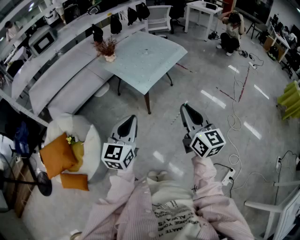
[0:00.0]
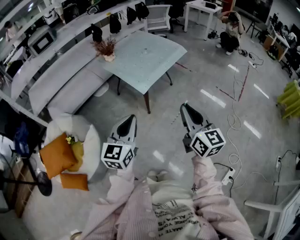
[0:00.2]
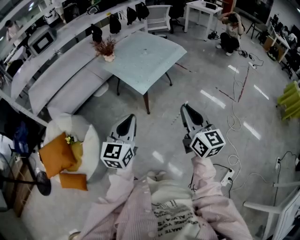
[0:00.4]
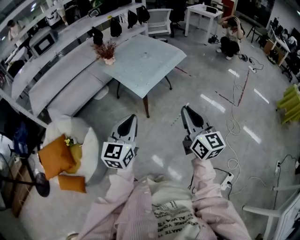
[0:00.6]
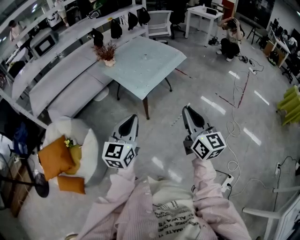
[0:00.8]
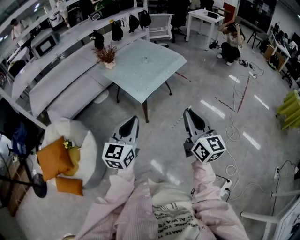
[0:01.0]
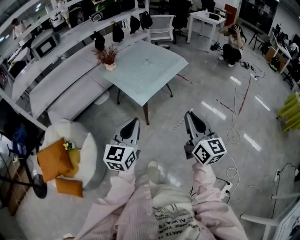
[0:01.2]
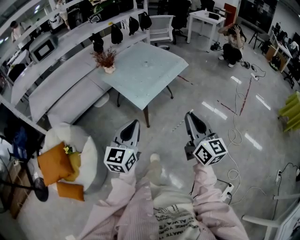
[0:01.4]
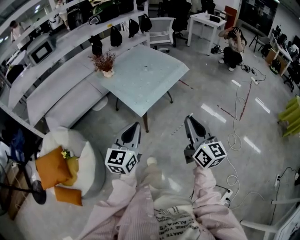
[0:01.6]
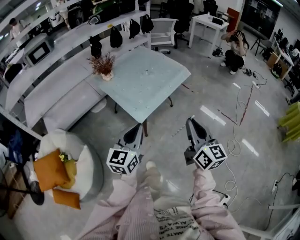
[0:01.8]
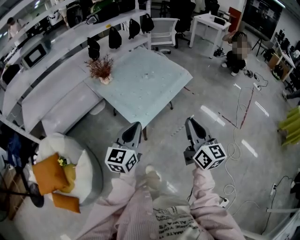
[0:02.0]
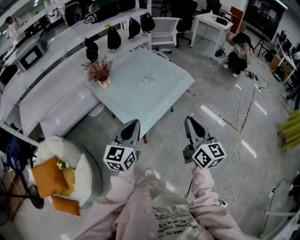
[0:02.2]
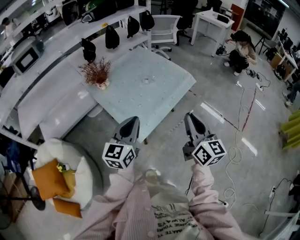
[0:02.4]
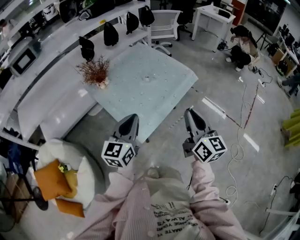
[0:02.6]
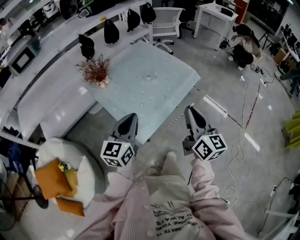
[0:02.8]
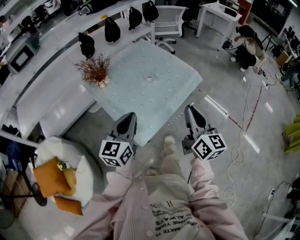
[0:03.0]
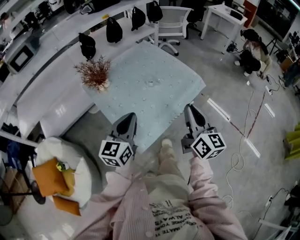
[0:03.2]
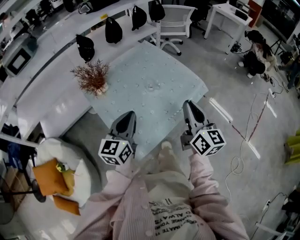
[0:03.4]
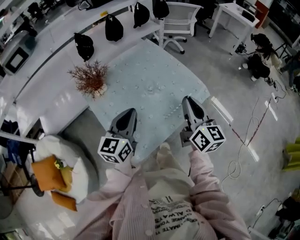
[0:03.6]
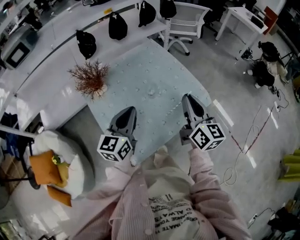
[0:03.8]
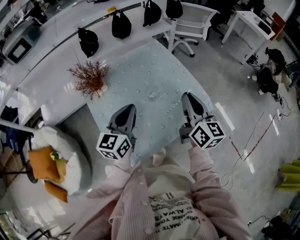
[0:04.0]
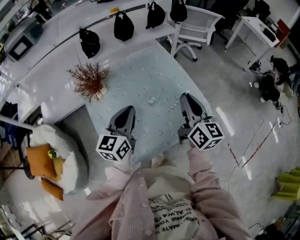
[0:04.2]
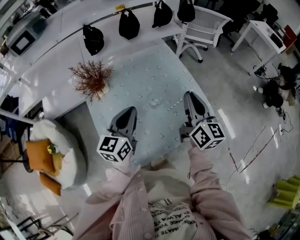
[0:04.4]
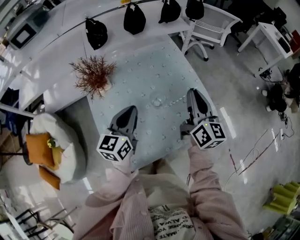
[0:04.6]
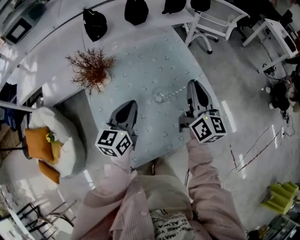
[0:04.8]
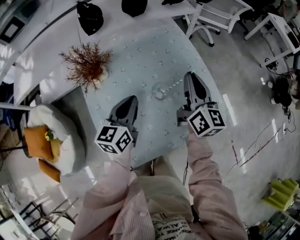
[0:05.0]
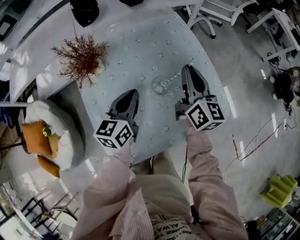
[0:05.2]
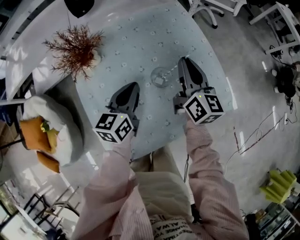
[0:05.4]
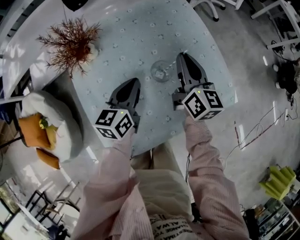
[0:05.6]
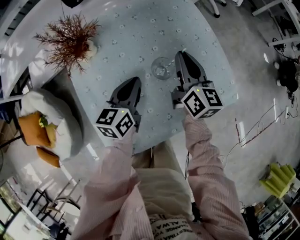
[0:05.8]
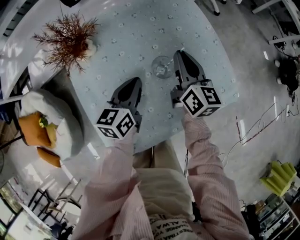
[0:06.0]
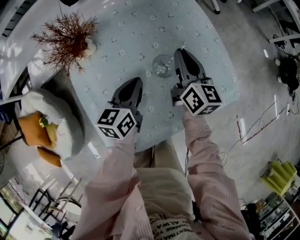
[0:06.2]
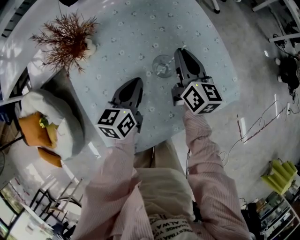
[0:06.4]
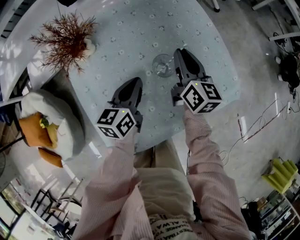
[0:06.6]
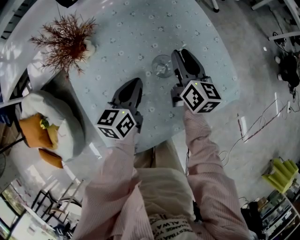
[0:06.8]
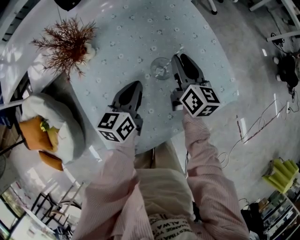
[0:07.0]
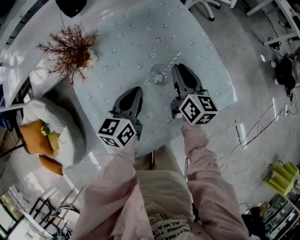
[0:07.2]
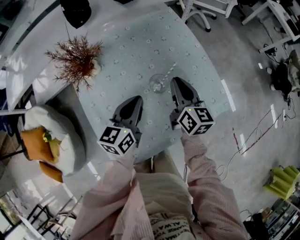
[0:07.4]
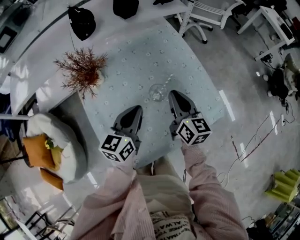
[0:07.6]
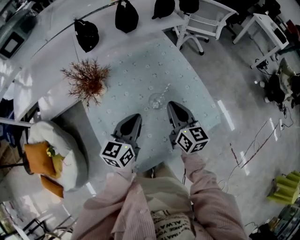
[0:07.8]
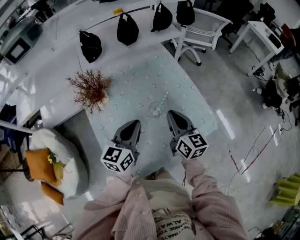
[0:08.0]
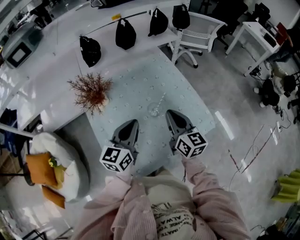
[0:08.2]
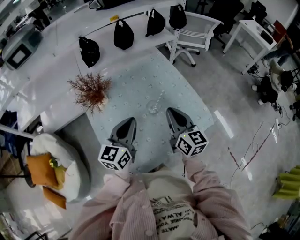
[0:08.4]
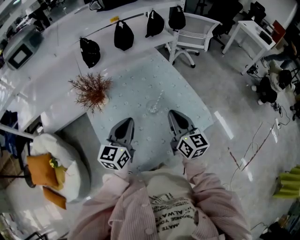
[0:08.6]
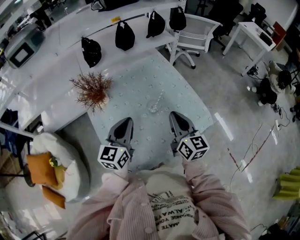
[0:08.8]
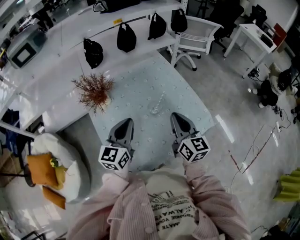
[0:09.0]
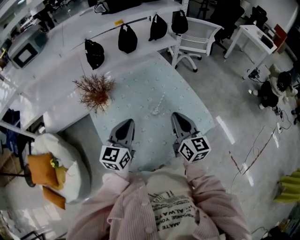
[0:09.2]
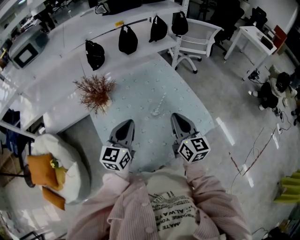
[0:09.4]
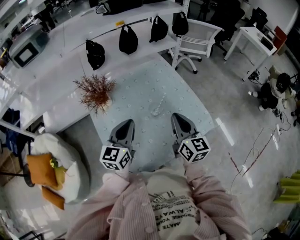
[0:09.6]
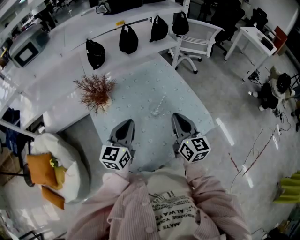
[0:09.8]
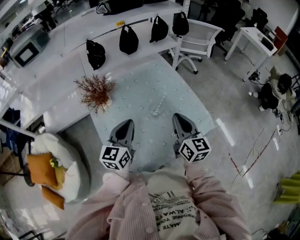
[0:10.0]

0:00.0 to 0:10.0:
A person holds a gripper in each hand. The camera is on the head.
0:00.0 to 0:01.4: Both grippers travel together forward, about 5 cm.
0:01.4 to 0:02.8: The two grippers go about 35 cm forward.
0:02.8 to 0:04.2: The grippers both shift forward by some 30 cm.
0:04.2 to 0:05.8: The right gripper shifts roughly 25 cm downward, forward and to the left. The left gripper shifts roughly 20 cm downward and forward, and swivels some 20 degrees.
0:05.8 to 0:07.2: The grippers move only a little.
0:07.2 to 0:08.6: The grippers both shift upward and backward by some 20 cm. The left gripper changes its angle by some 20 degrees.
0:08.6 to 0:10.0: There are only small adjustments of the grippers.

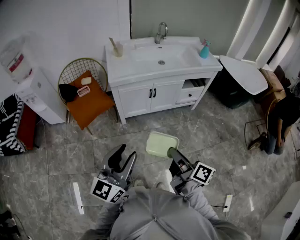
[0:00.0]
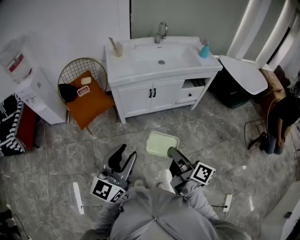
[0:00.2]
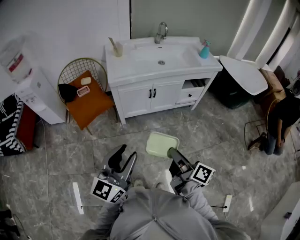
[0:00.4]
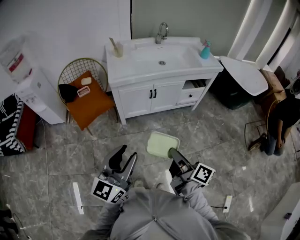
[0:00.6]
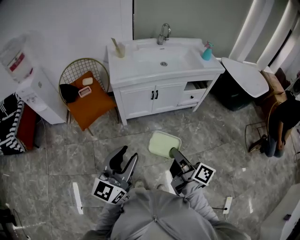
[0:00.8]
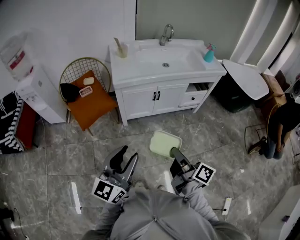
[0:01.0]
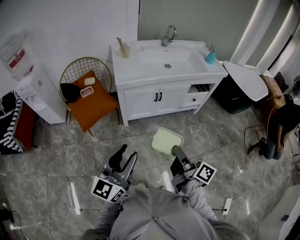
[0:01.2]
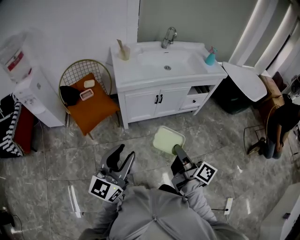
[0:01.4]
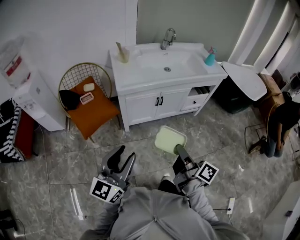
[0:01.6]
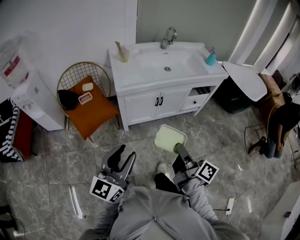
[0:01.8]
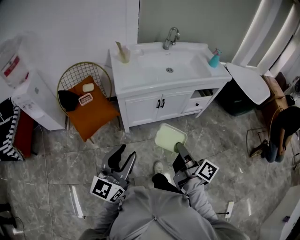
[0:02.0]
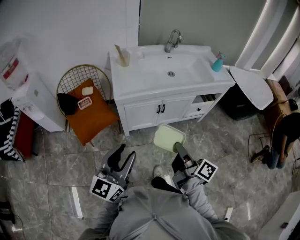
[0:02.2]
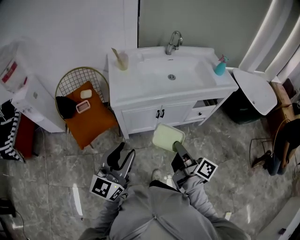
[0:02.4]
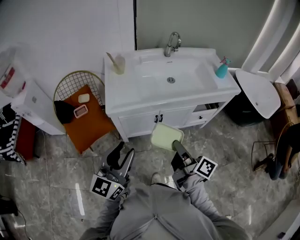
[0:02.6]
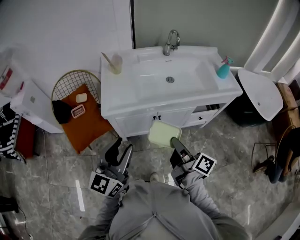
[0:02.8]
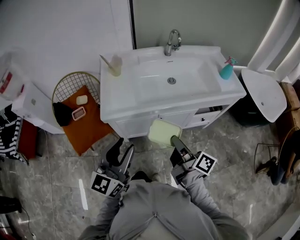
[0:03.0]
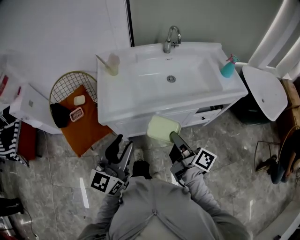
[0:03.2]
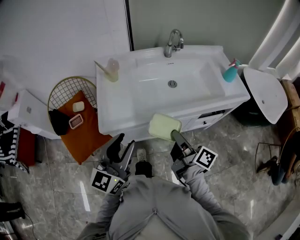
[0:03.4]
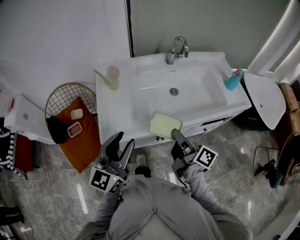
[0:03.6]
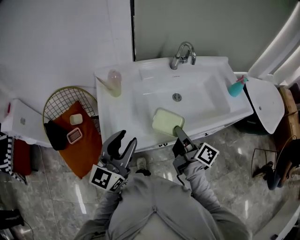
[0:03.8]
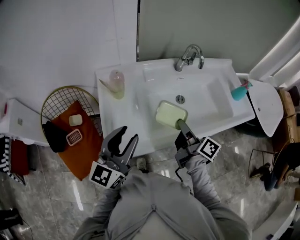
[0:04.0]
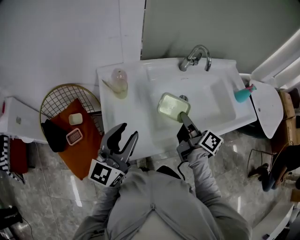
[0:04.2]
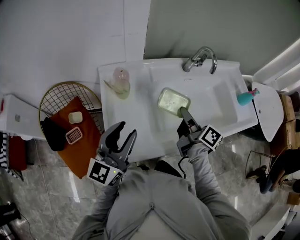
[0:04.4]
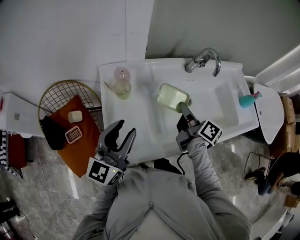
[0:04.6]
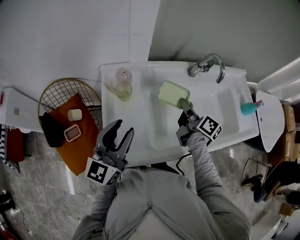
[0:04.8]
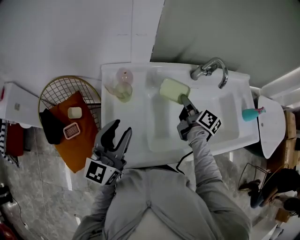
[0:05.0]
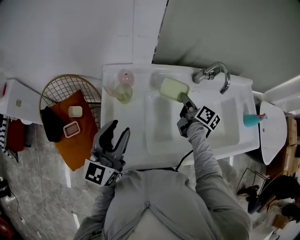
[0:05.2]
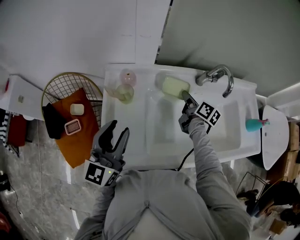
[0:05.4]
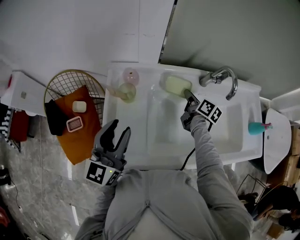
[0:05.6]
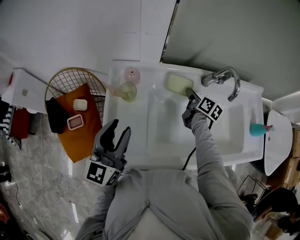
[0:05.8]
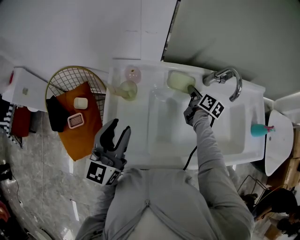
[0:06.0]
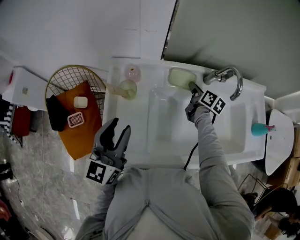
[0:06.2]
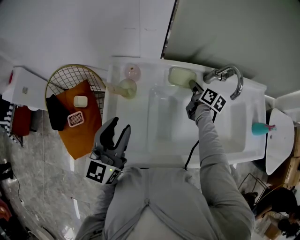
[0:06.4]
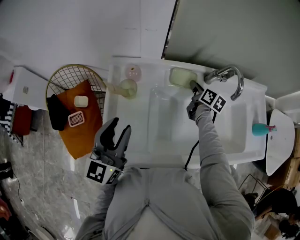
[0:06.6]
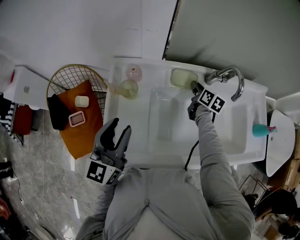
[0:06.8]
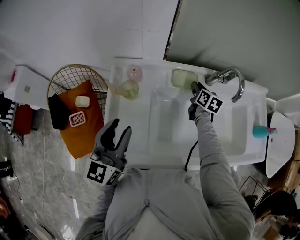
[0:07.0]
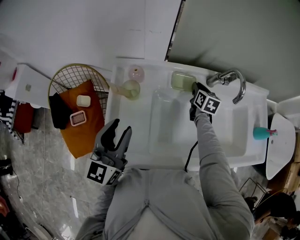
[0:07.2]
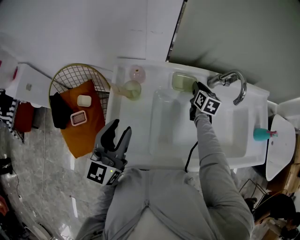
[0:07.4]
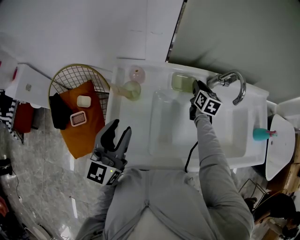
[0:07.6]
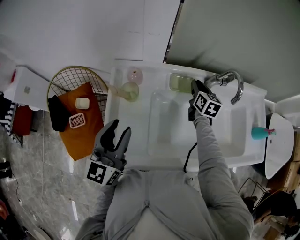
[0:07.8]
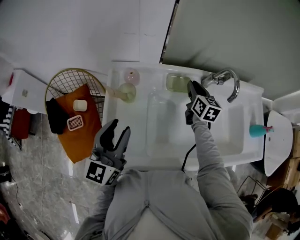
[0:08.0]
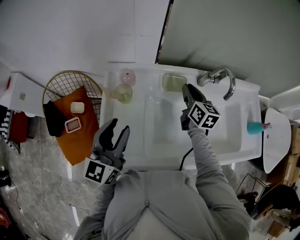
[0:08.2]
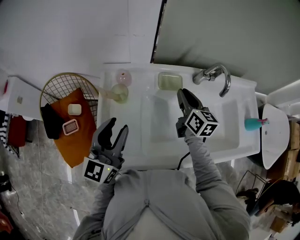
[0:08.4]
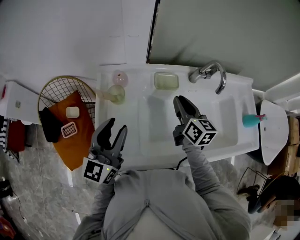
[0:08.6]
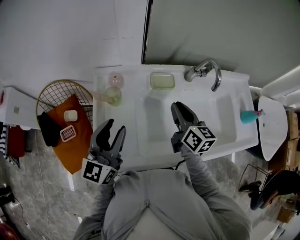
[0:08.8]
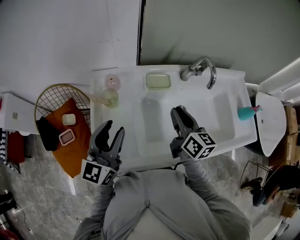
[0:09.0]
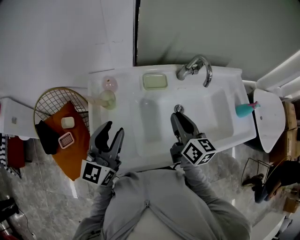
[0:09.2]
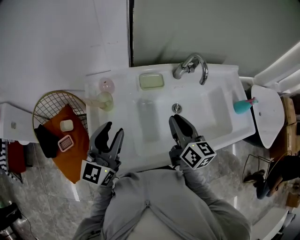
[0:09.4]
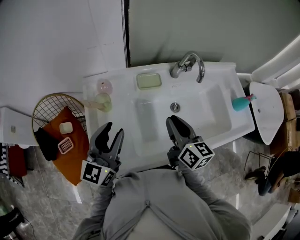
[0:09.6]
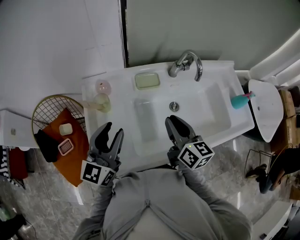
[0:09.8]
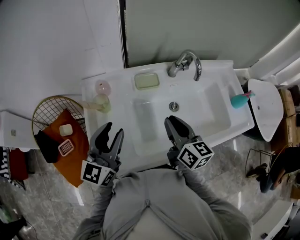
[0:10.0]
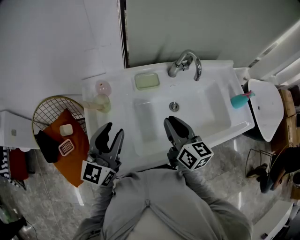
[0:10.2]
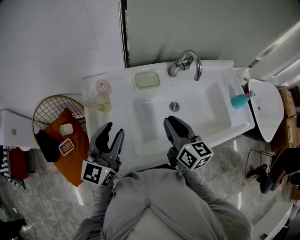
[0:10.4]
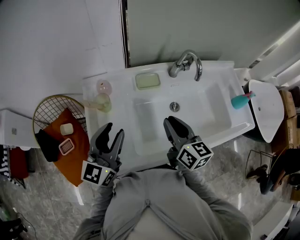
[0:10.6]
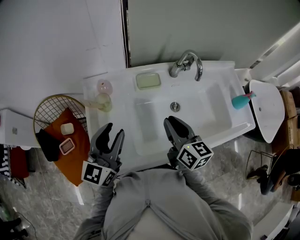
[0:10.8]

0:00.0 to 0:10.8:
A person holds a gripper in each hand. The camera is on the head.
0:00.0 to 0:01.6: The left gripper heads to the left and forward, covering about 10 cm. Meanwhile the right gripper goes some 5 cm forward.
0:01.6 to 0:03.0: The two grippers go some 30 cm forward.
0:03.0 to 0:04.6: The two grippers go approximately 35 cm forward.
0:04.6 to 0:06.2: The right gripper travels forward and downward by approximately 25 cm, and swivels roughly 20 degrees.
0:06.2 to 0:07.8: The right gripper turns by some 30 degrees.
0:07.8 to 0:09.2: The right gripper shifts about 25 cm backward and upward.
0:09.2 to 0:10.8: The grippers move only a little.

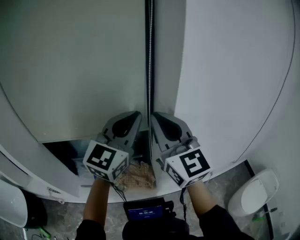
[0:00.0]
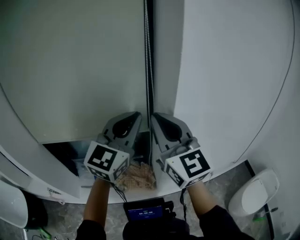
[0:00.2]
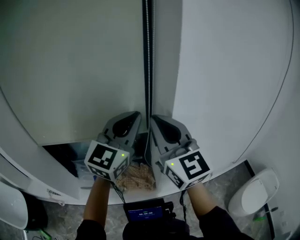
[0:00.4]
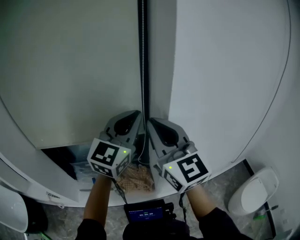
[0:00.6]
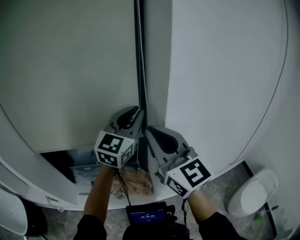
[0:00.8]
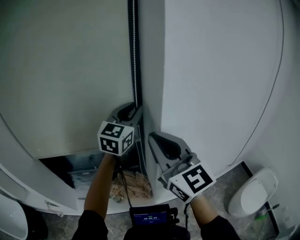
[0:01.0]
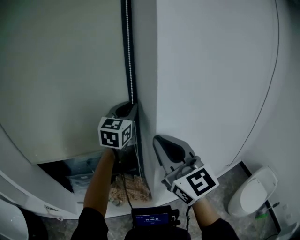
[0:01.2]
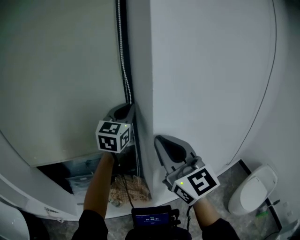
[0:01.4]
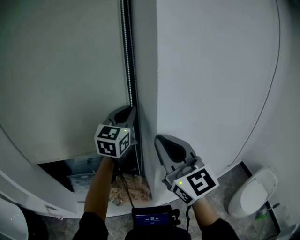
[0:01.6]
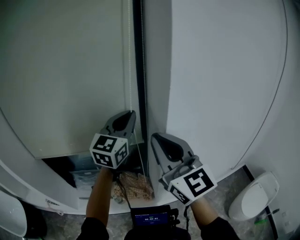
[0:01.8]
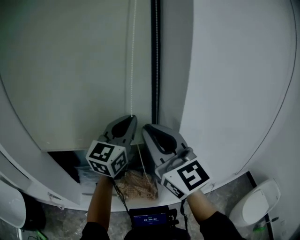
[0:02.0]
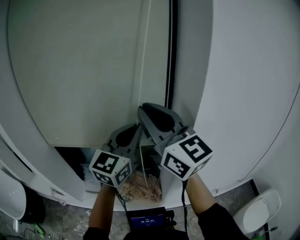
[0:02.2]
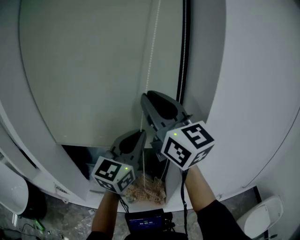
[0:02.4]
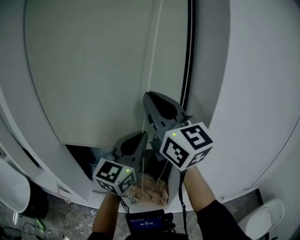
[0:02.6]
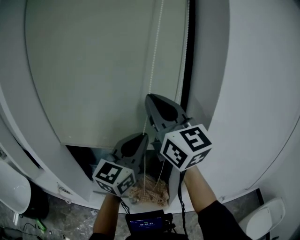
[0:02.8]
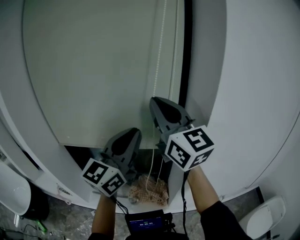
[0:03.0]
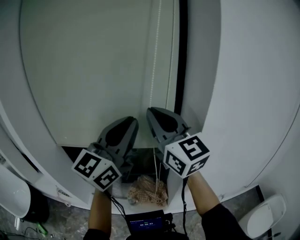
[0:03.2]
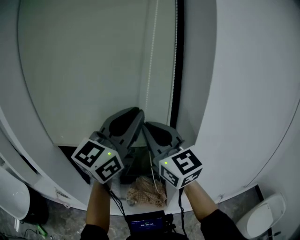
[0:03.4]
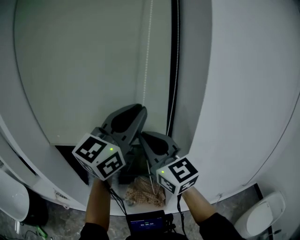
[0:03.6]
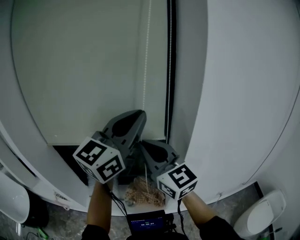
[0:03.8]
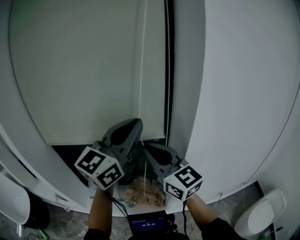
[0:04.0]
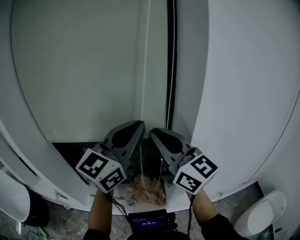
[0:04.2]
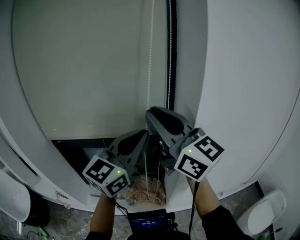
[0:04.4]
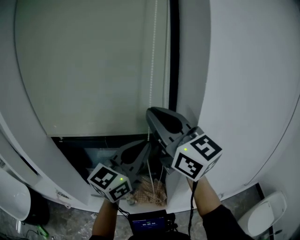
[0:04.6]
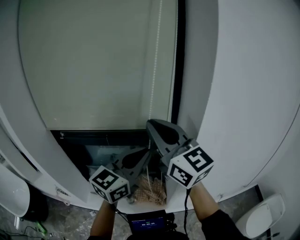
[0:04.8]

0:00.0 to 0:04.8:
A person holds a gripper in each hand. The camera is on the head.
0:00.0 to 0:01.6: The left gripper is displaced forward by roughly 15 cm. Meanwhile the right gripper heads to the right, covering some 5 cm.
0:01.6 to 0:03.2: The left gripper travels to the left, backward and upward by some 25 cm. The right gripper moves to the left and upward, some 15 cm.
0:03.2 to 0:04.8: The right gripper goes up and down, roughly 15 cm each way, reversing 2 times; the left gripper travels downward by some 10 cm.
